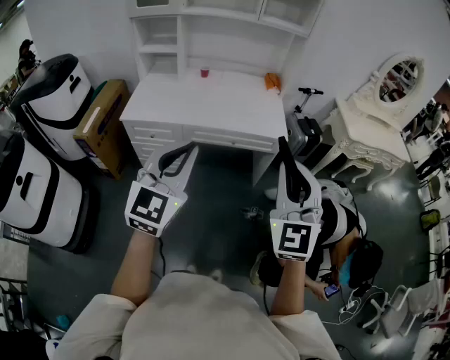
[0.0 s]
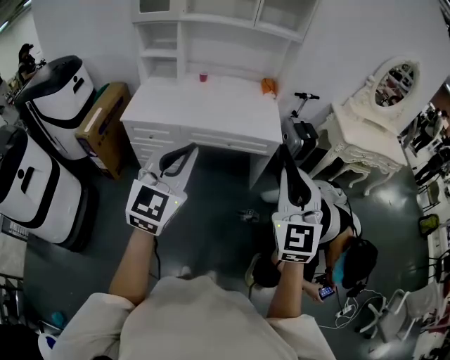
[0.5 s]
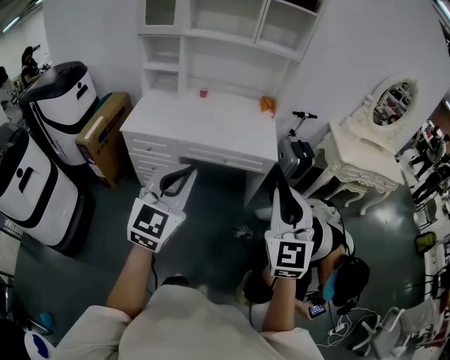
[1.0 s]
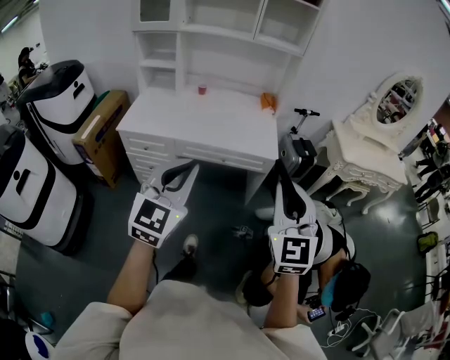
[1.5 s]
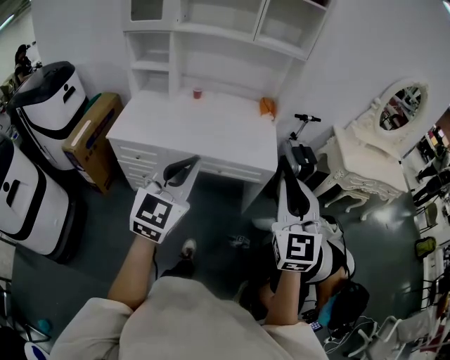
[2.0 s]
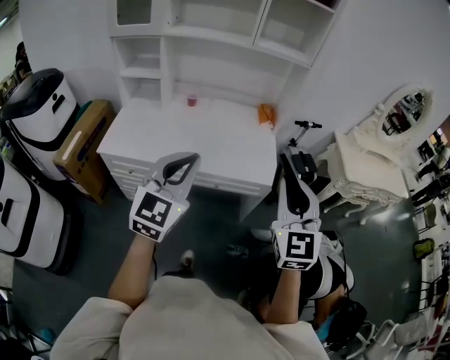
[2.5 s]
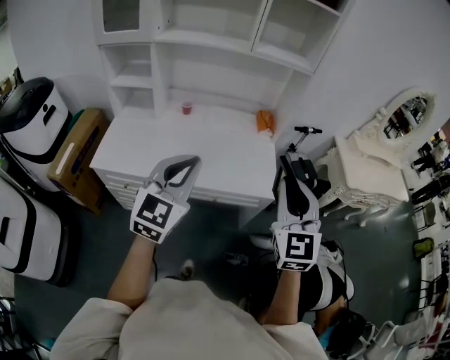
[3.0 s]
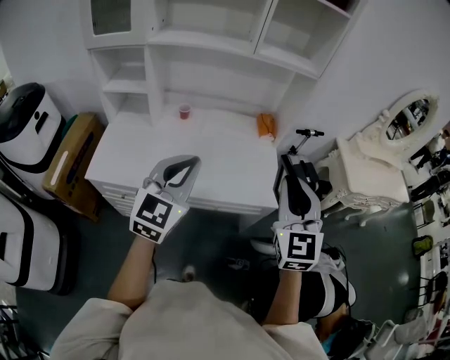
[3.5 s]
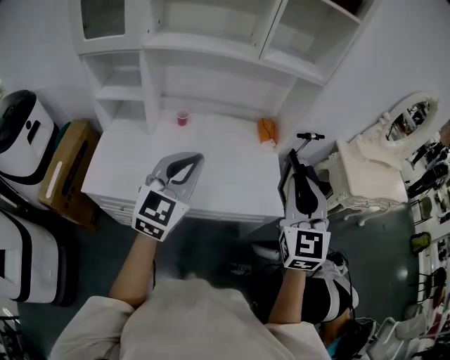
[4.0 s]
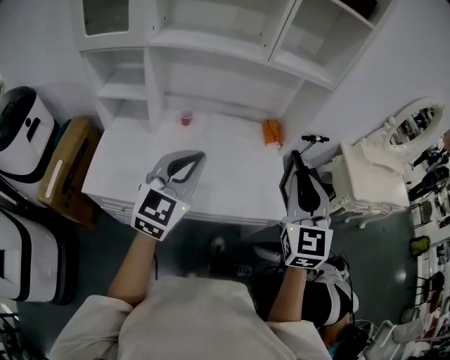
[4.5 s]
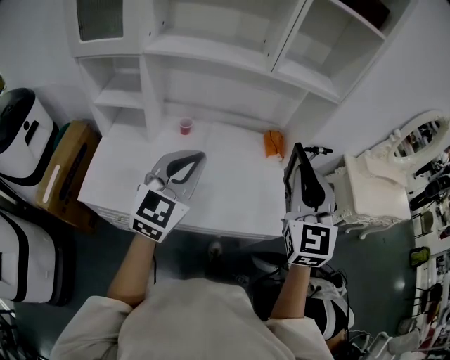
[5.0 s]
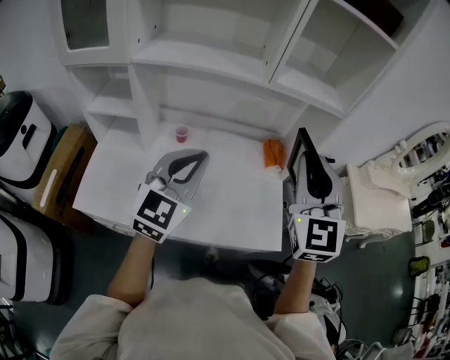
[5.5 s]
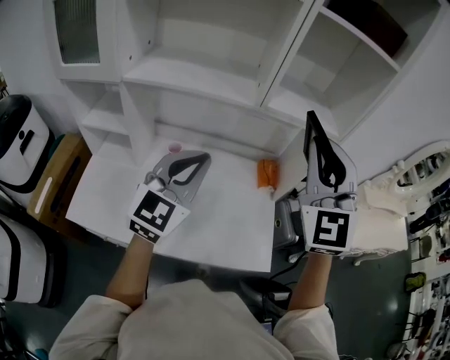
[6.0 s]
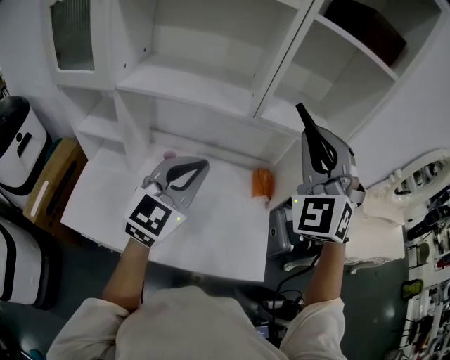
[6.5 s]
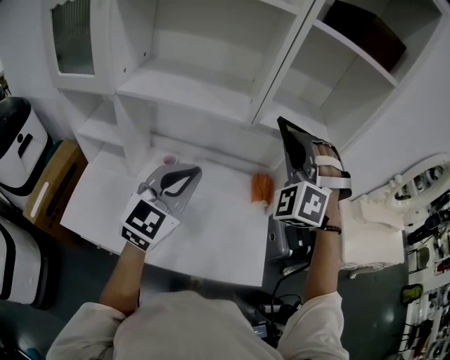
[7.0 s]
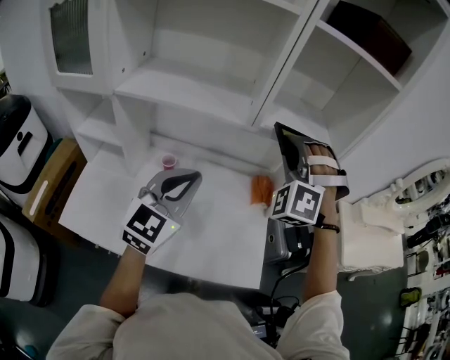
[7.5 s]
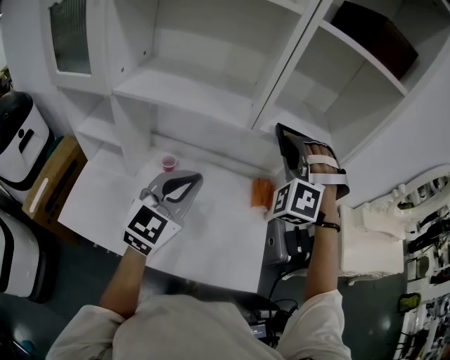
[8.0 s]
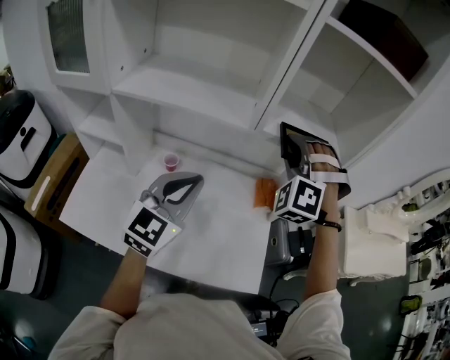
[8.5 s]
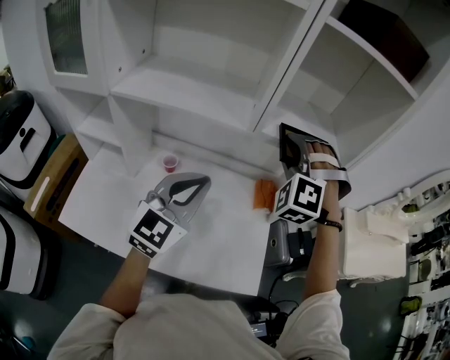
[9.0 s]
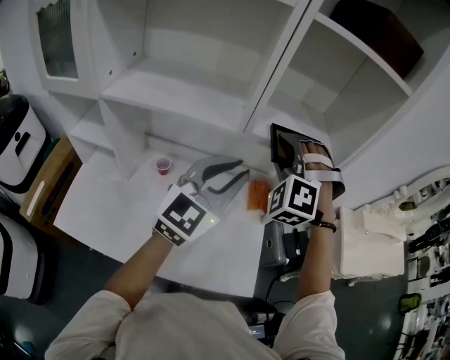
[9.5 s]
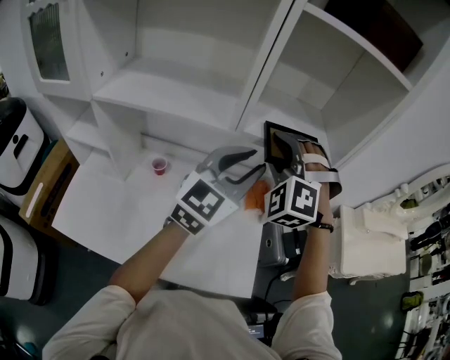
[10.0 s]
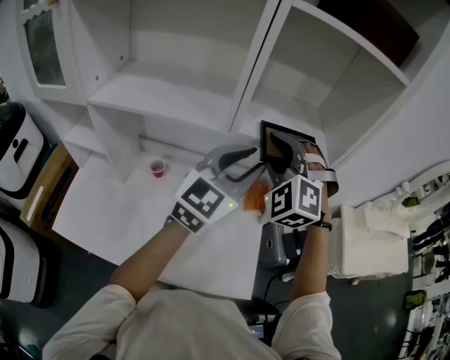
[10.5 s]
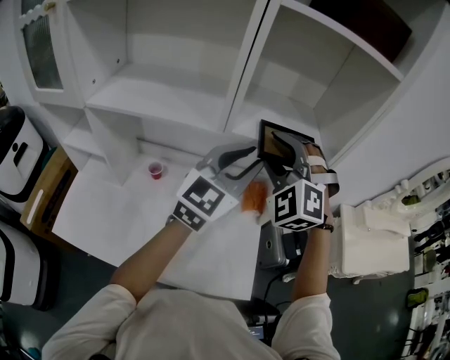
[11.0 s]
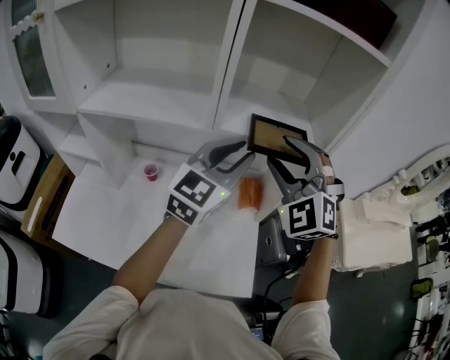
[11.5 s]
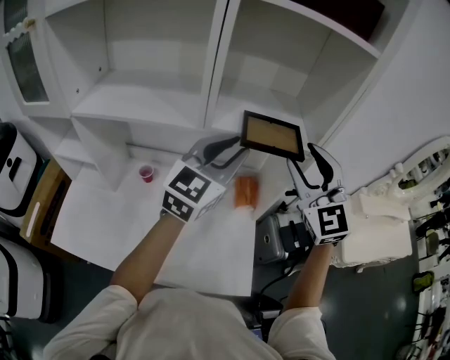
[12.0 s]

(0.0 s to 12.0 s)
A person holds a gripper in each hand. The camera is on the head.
0.0 s - 2.0 s: The two grippers go approximately 15 cm forward and to the right.
2.0 s - 4.0 s: Both grippers travel together forward, about 35 cm.
4.0 s - 6.0 s: The right gripper moves forward and upward, approximately 30 cm, and swivels about 20 degrees. Meanwhile the left gripper travels forward by some 20 cm.
6.0 s - 8.0 s: The left gripper shifts by about 5 cm, while the right gripper goes about 15 cm forward and downward, and rolls counterclockwise, seen from behind, by roughly 50 degrees.
8.0 s - 10.0 s: The left gripper shifts roughly 20 cm to the right, forward and upward, and opens its fingers; the right gripper opens its fingers.
10.0 s - 12.0 s: The right gripper travels to the right by some 15 cm, and rolls clockwise, seen from behind, by approximately 40 degrees.

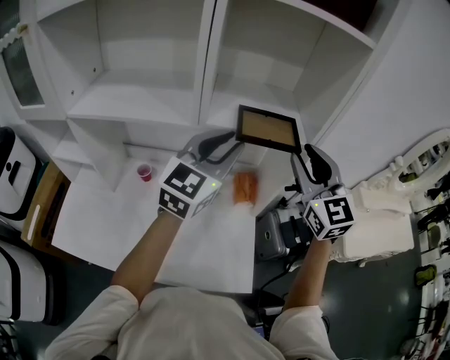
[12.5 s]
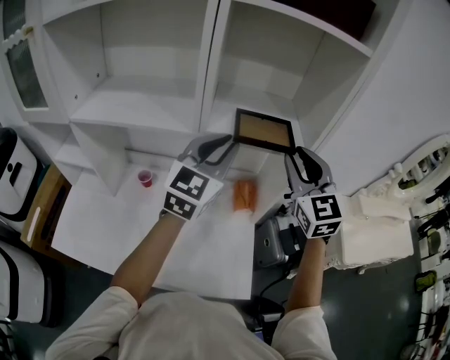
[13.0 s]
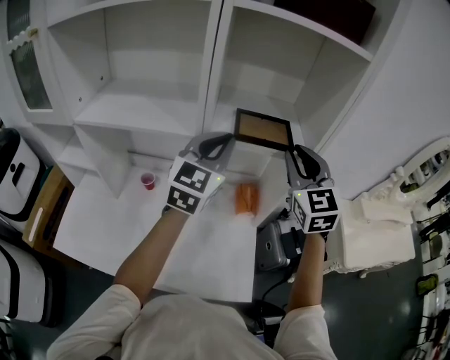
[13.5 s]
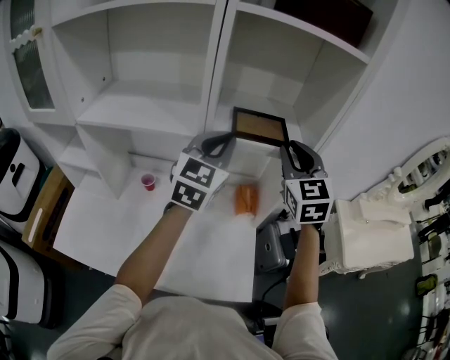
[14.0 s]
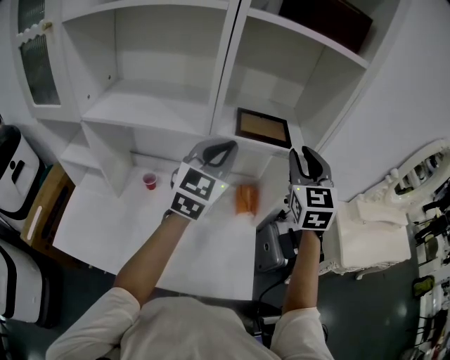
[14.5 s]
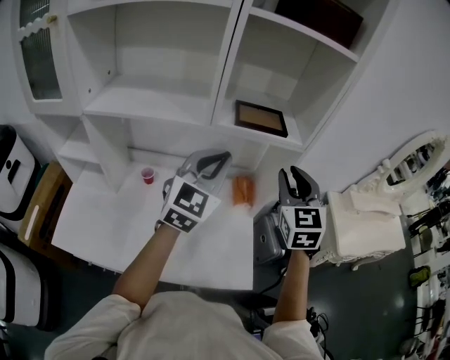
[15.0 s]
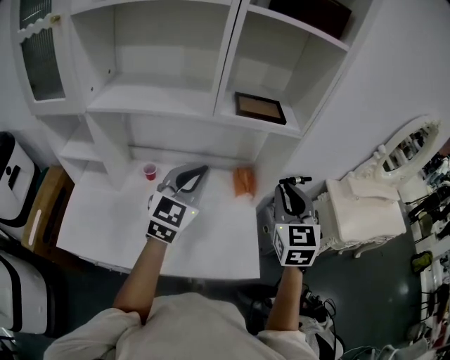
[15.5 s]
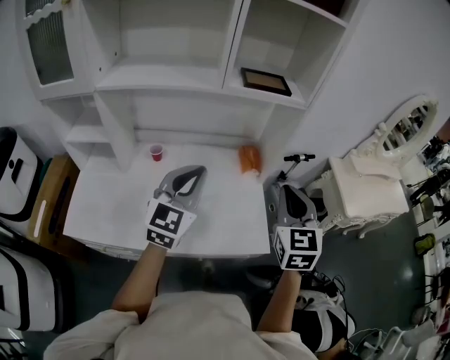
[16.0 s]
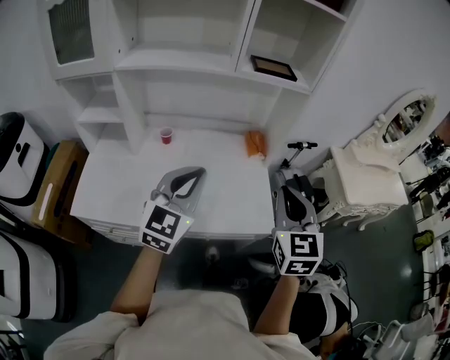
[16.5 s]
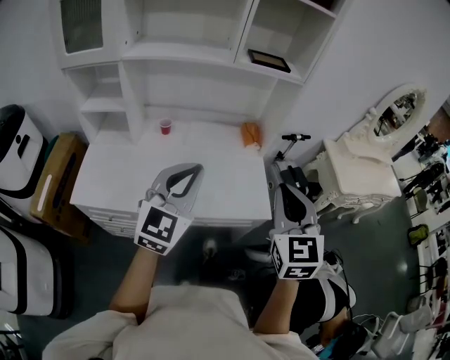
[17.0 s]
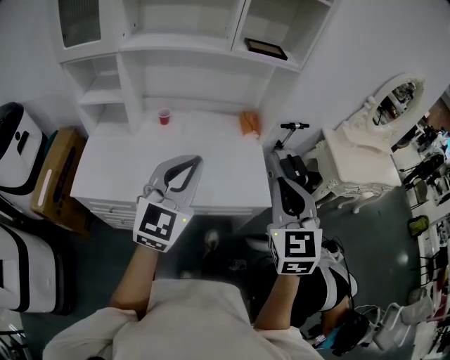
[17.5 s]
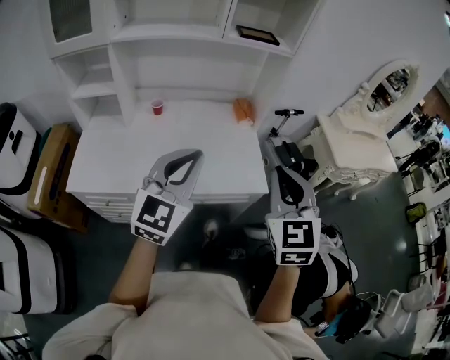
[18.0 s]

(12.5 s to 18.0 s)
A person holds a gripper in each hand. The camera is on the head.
12.5 s - 14.5 s: The left gripper closes.
14.5 s - 16.0 s: The two grippers go some 25 cm backward and downward. The right gripper closes up.
16.0 s - 18.0 s: The grippers both shift backward by approximately 25 cm.

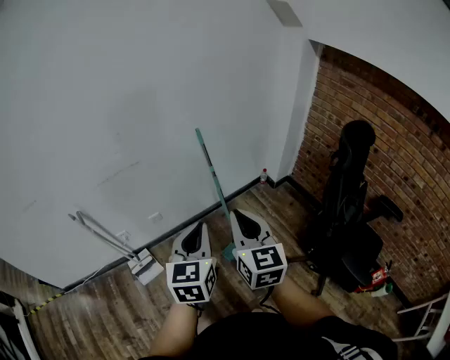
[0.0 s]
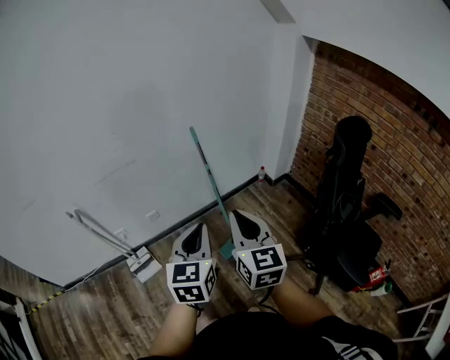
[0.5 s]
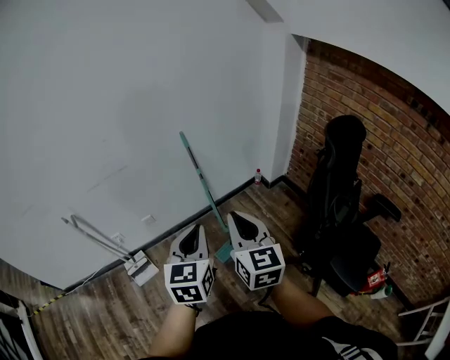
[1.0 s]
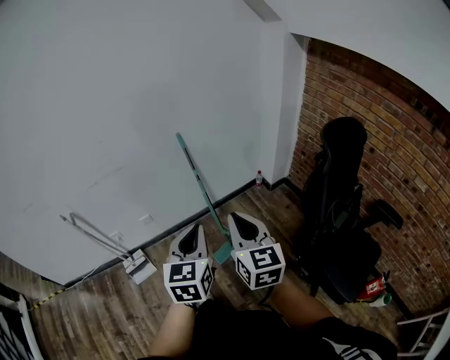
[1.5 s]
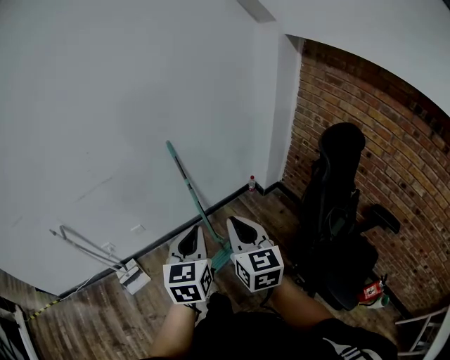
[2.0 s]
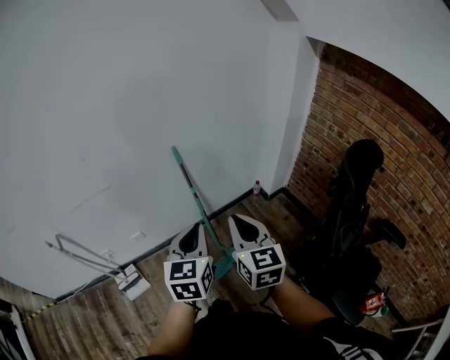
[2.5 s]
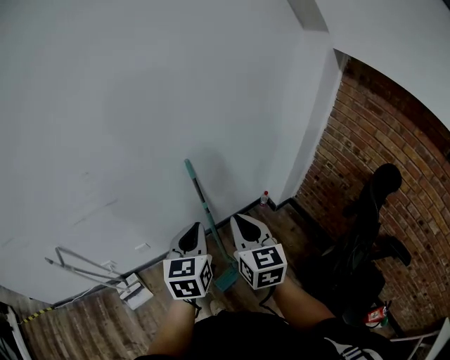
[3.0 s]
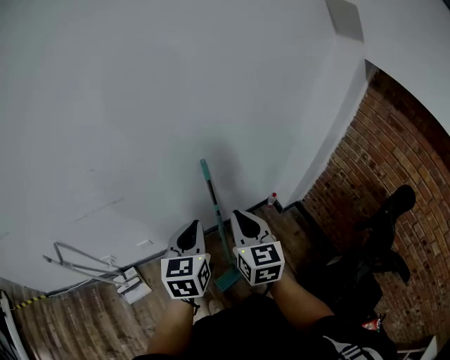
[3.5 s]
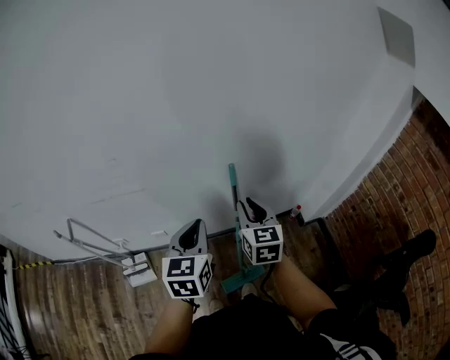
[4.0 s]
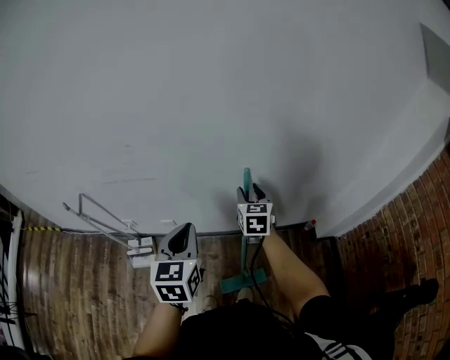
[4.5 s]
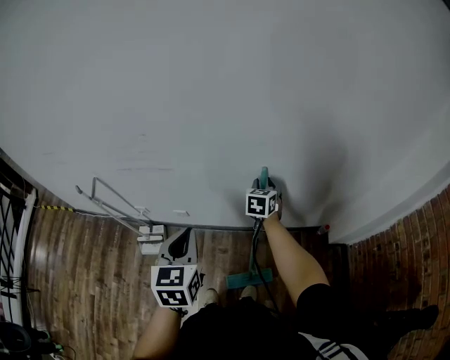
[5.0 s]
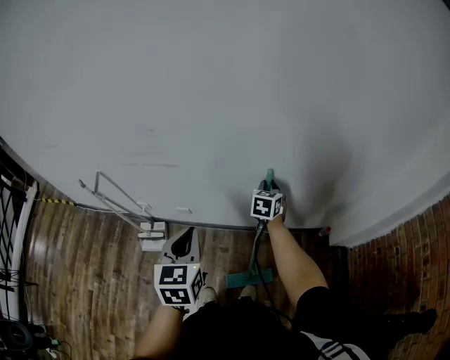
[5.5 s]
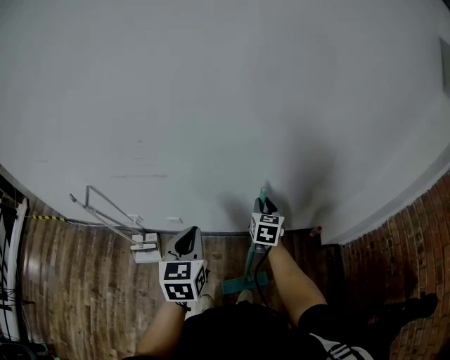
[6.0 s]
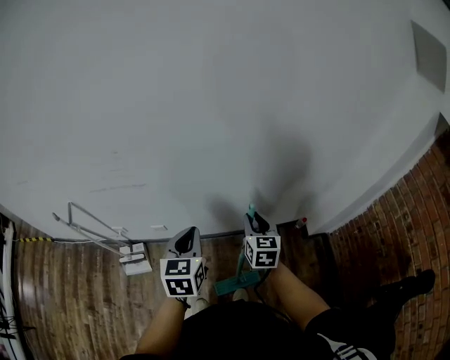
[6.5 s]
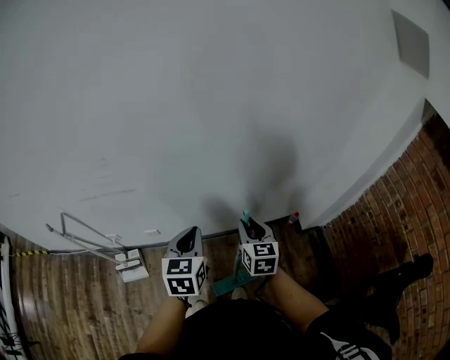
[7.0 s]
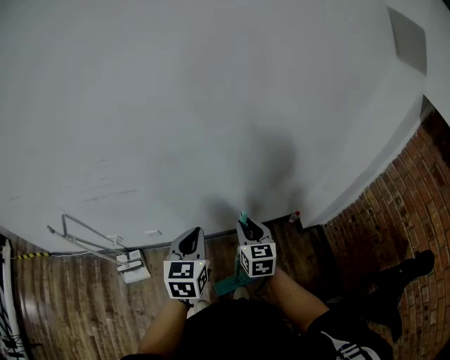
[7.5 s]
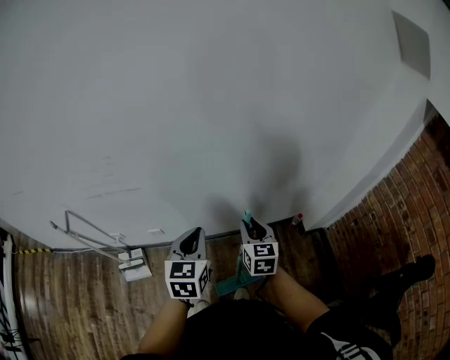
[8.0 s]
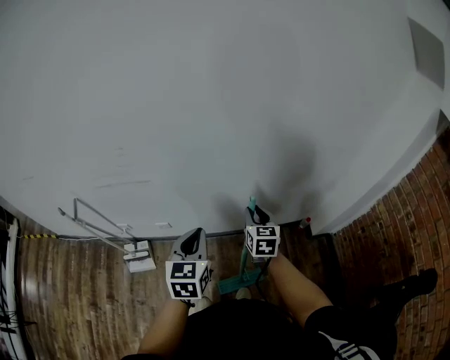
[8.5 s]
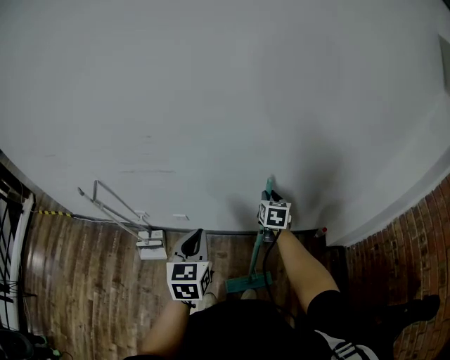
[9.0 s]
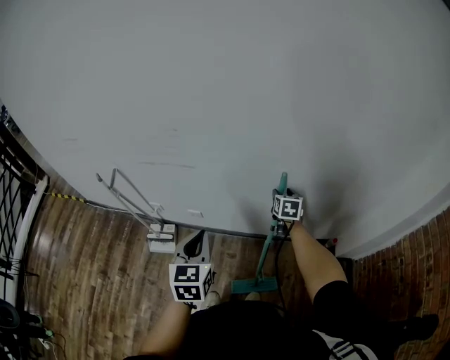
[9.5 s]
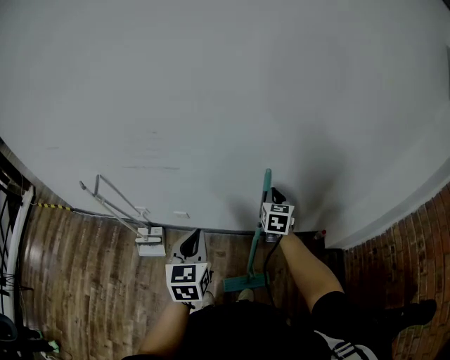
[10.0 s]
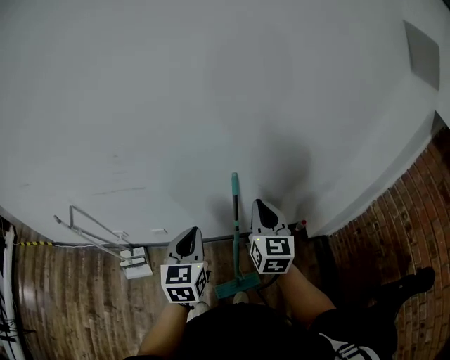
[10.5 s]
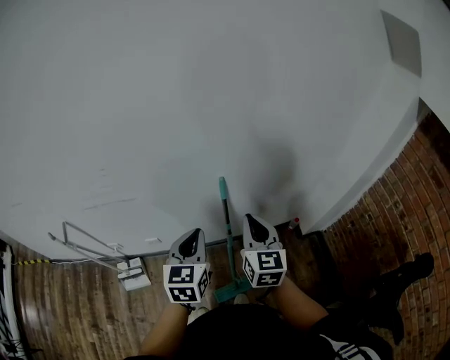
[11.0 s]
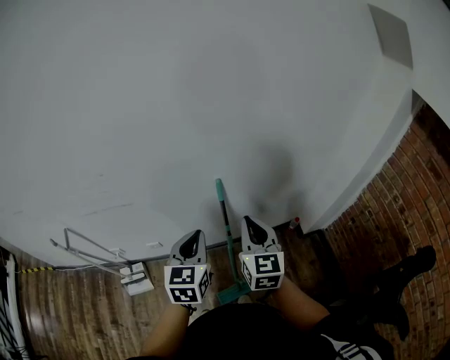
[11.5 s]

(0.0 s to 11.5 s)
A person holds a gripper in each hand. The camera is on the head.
0.0 s - 2.0 s: The left gripper shifts approximately 15 cm to the right and forward. Meanwhile the right gripper goes some 15 cm to the right.
2.0 s - 4.0 s: The right gripper shifts about 40 cm forward; the left gripper shifts roughly 35 cm forward and to the left.
4.0 s - 6.0 s: The right gripper travels downward and forward by about 15 cm.
6.0 s - 7.5 s: The left gripper moves to the right, approximately 5 cm. Meanwhile the right gripper goes some 10 cm backward.
7.5 s - 9.5 s: The left gripper heads to the left and backward, covering approximately 15 cm, and turns by roughly 20 degrees. The right gripper moves forward and downward, roughly 20 cm, and opens its fingers.
9.5 s - 11.5 s: The right gripper heads upward and backward, covering some 25 cm, changes its angle by some 30 degrees, and closes; the left gripper is displaced to the right and forward by approximately 15 cm, and changes its angle by about 20 degrees.
